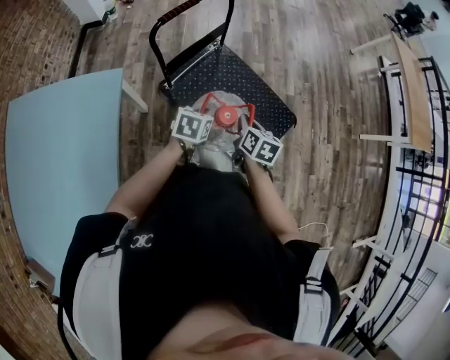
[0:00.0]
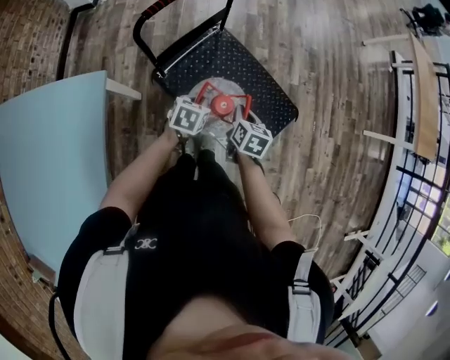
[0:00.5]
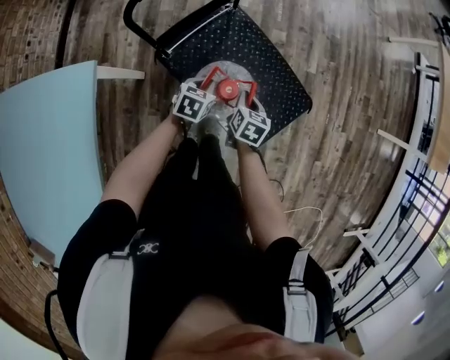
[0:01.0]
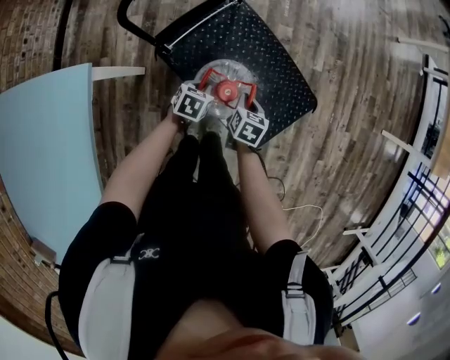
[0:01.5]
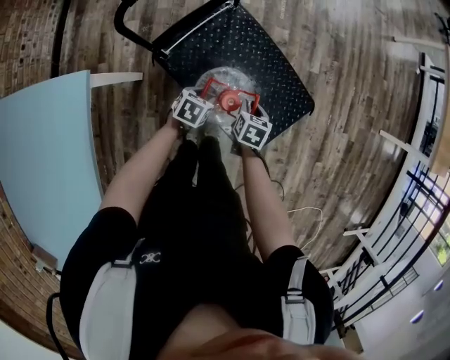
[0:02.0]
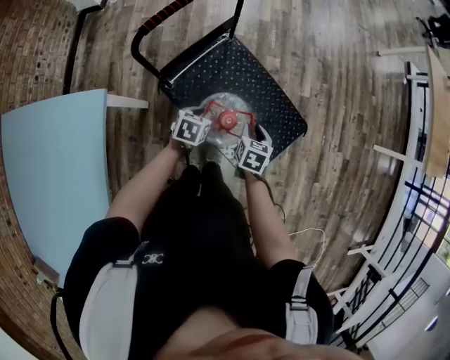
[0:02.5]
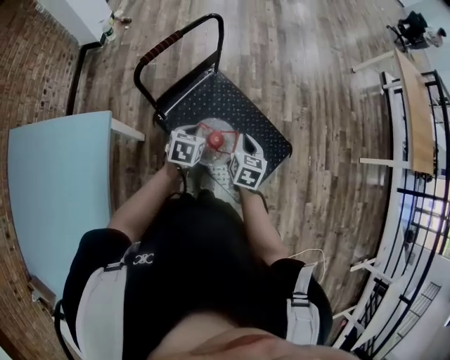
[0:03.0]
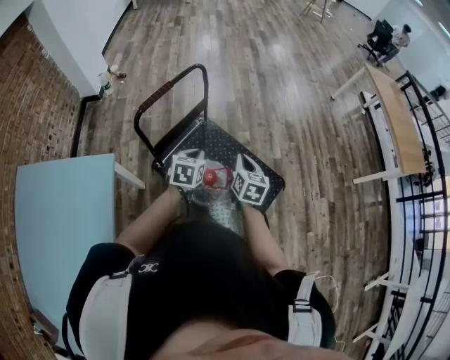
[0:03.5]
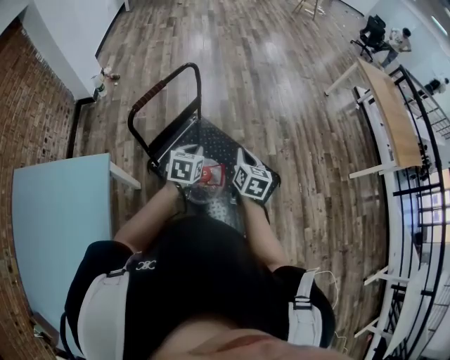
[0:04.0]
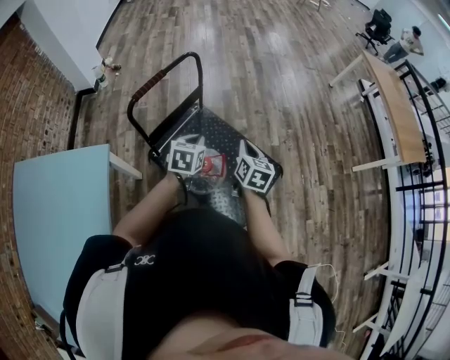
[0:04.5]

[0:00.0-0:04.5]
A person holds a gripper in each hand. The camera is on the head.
0:00.0 to 0:02.0: The two grippers go some 20 cm downward and forward. The left gripper opens up; the right gripper turns by approximately 20 degrees.
0:02.0 to 0:04.5: The grippers both shift upward by some 30 cm. The right gripper angles its fingers upward, by some 30 degrees; the left gripper swivels some 30 degrees, and closes.

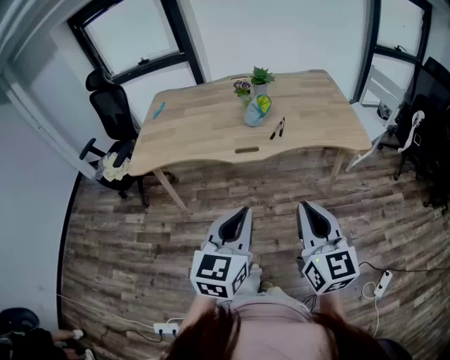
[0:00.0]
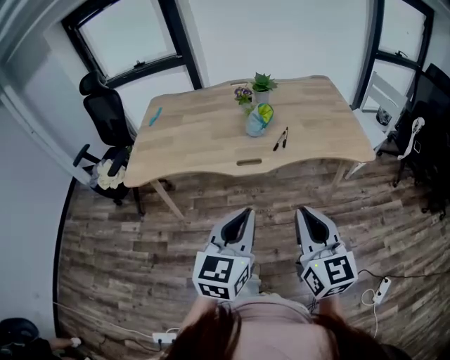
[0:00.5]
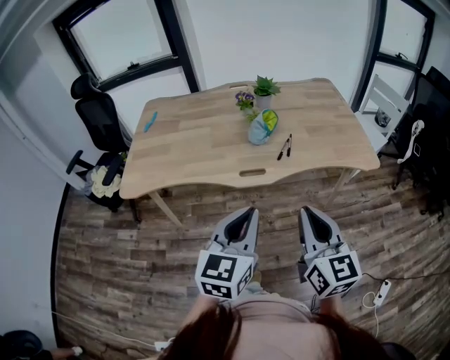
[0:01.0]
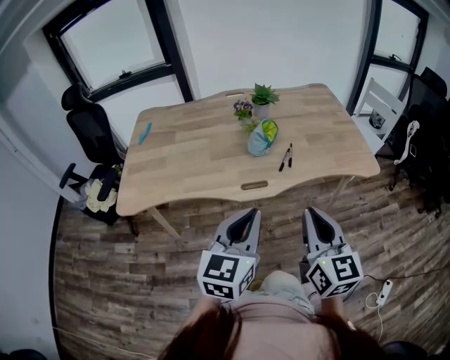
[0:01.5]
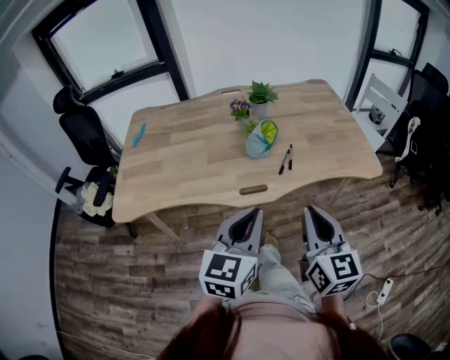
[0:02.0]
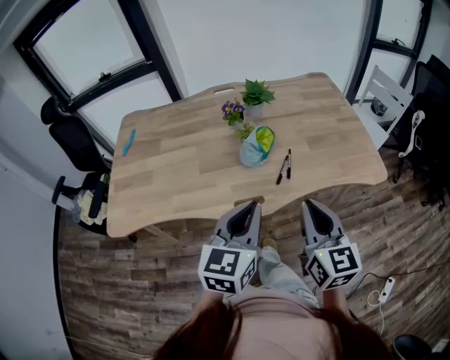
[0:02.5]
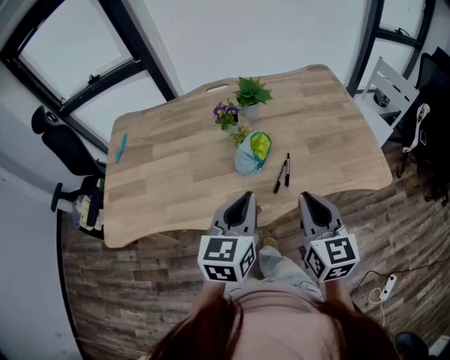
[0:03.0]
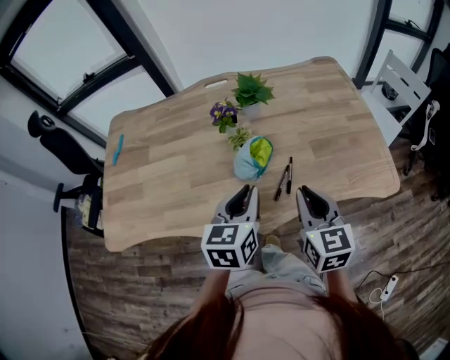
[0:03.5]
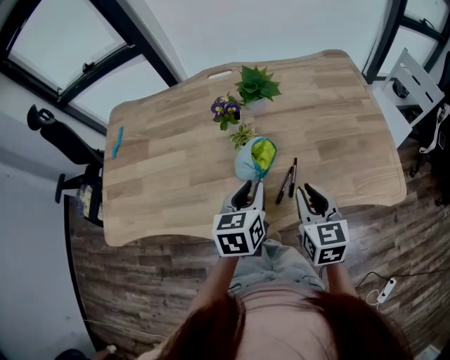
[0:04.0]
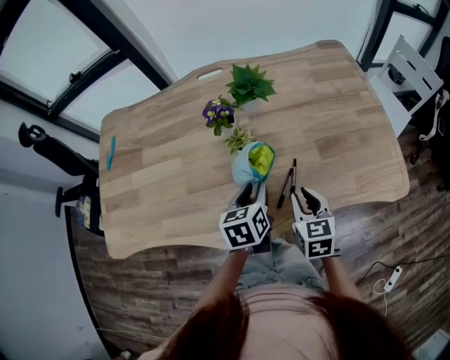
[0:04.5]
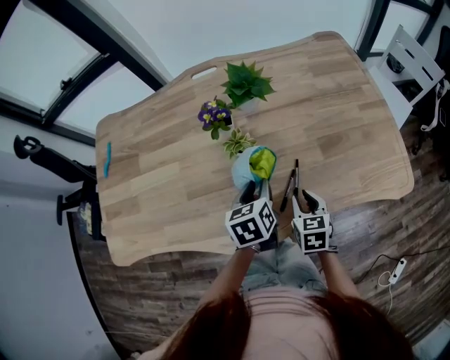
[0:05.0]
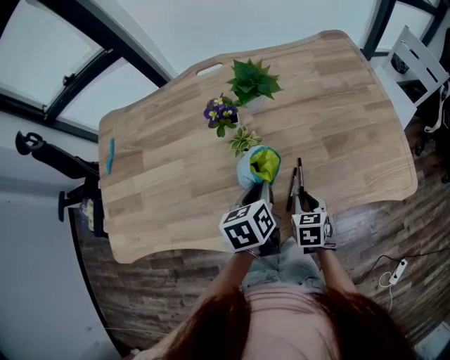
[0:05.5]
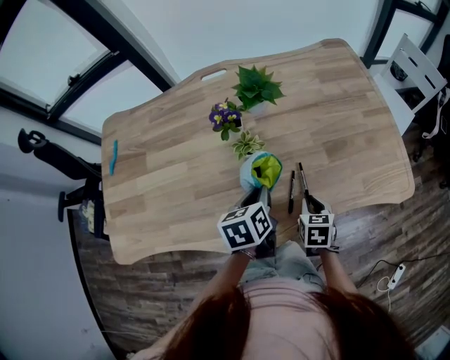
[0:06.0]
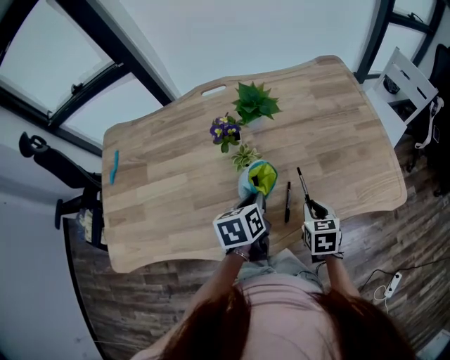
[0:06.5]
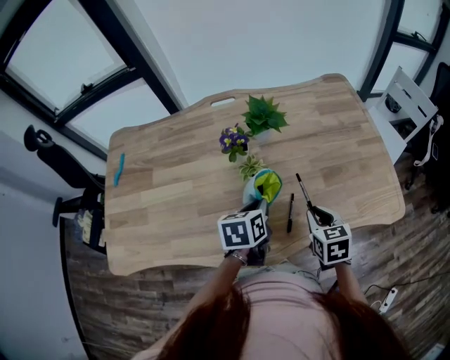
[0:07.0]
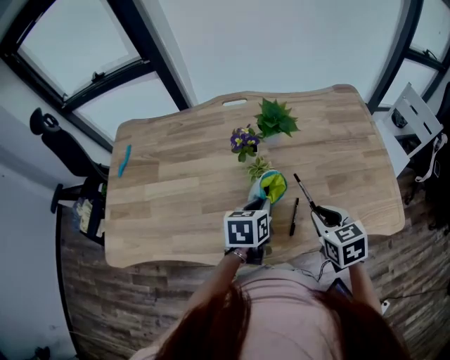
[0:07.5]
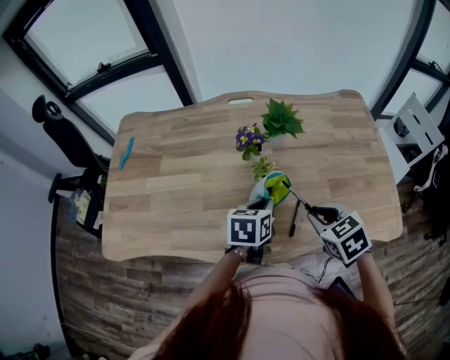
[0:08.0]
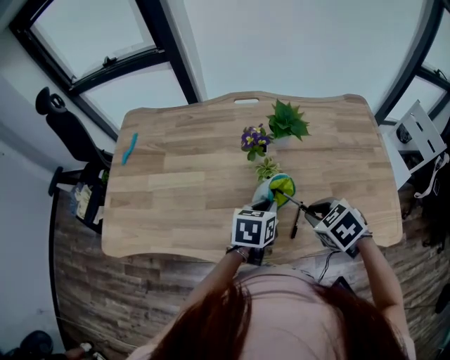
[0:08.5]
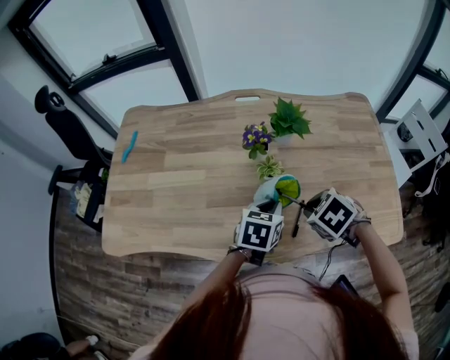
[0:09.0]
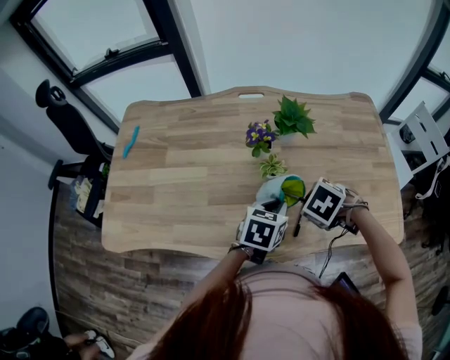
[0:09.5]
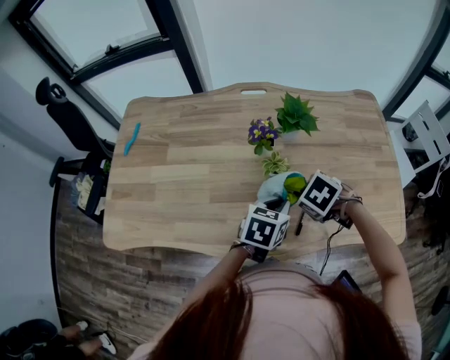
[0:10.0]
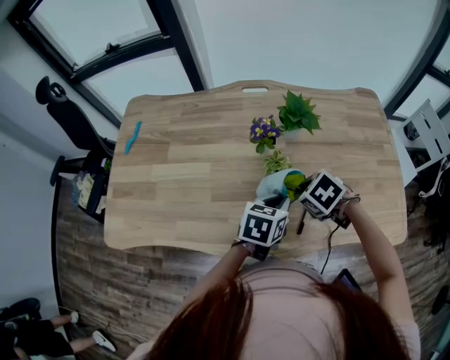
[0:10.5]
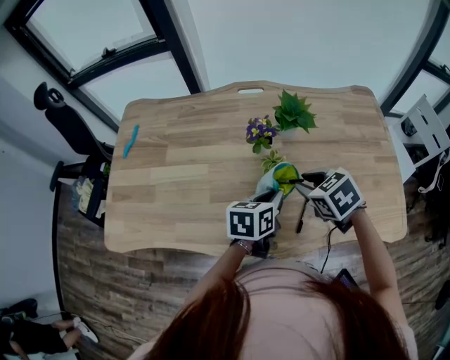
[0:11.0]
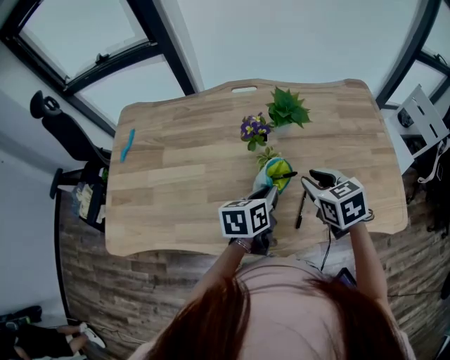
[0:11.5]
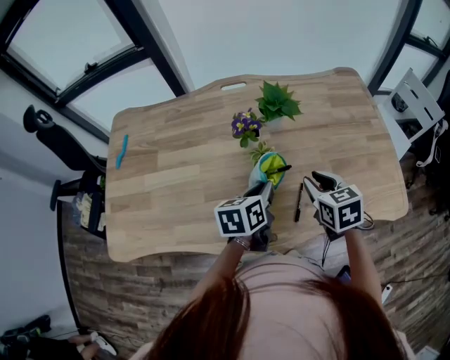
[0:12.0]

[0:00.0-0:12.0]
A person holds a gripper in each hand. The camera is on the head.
0:00.0 to 0:02.0: Both grippers move forward, roughly 20 cm.
0:02.0 to 0:04.0: The two grippers go some 35 cm forward and downward. The left gripper turns by approximately 30 degrees. The right gripper turns by roughly 20 degrees.
0:04.0 to 0:06.0: The left gripper goes approximately 5 cm downward. Meanwhile the right gripper heads downward, covering approximately 15 cm, and turns by some 30 degrees.
0:06.0 to 0:08.0: The right gripper goes about 15 cm upward, and rotates about 40 degrees.
0:08.0 to 0:10.0: The right gripper moves roughly 10 cm, and swivels some 30 degrees.
0:10.0 to 0:12.0: The left gripper swivels about 20 degrees; the right gripper moves roughly 5 cm, and tips its fingers upward by roughly 40 degrees.

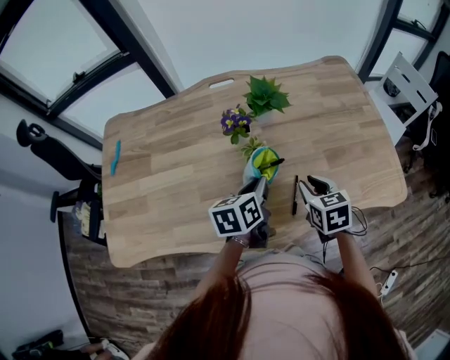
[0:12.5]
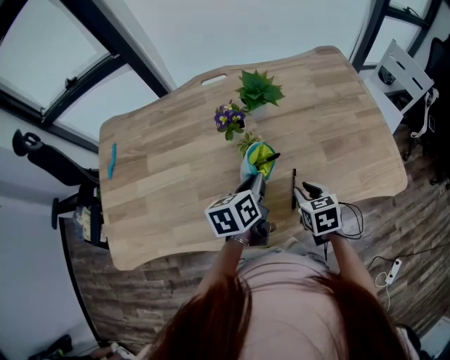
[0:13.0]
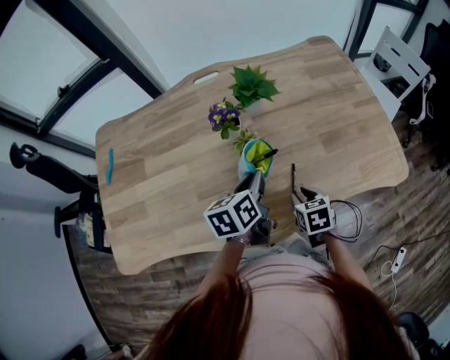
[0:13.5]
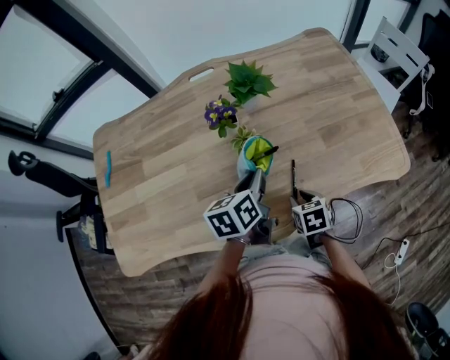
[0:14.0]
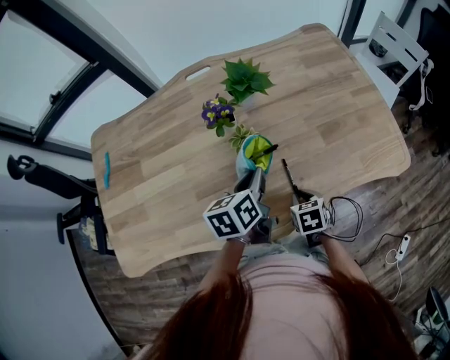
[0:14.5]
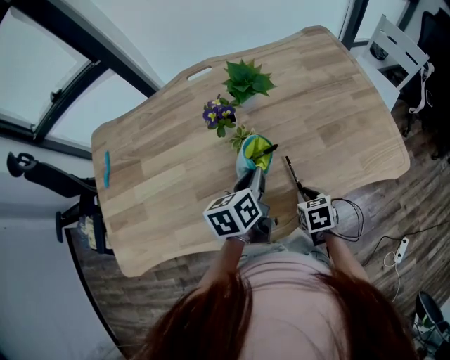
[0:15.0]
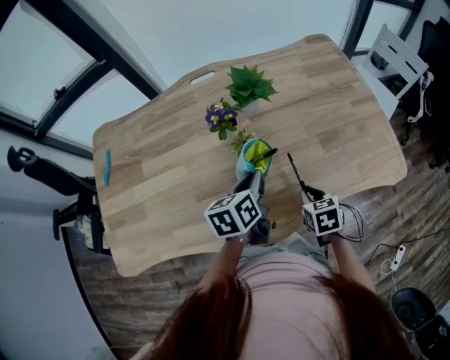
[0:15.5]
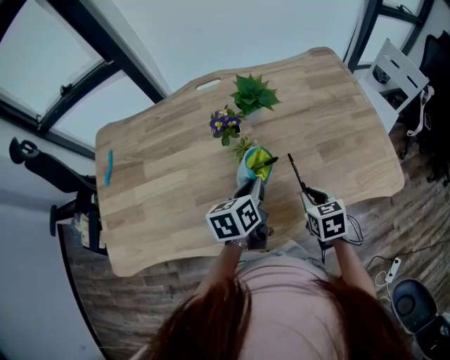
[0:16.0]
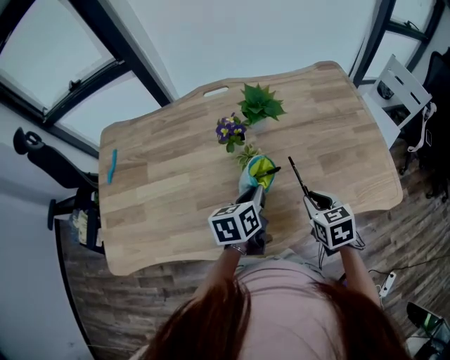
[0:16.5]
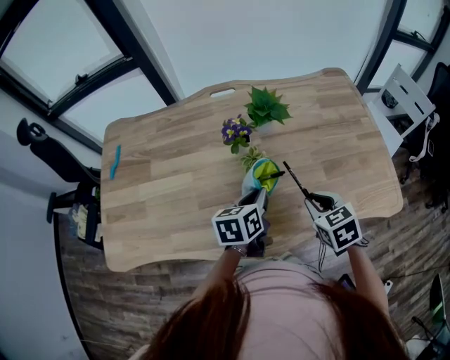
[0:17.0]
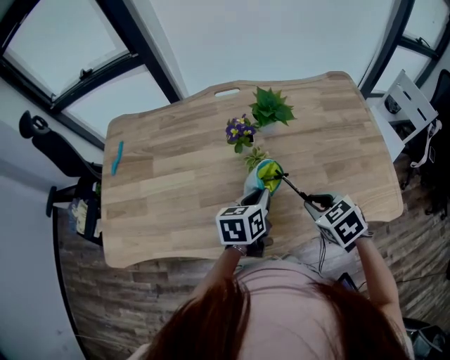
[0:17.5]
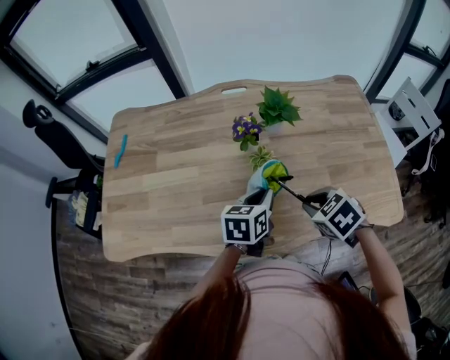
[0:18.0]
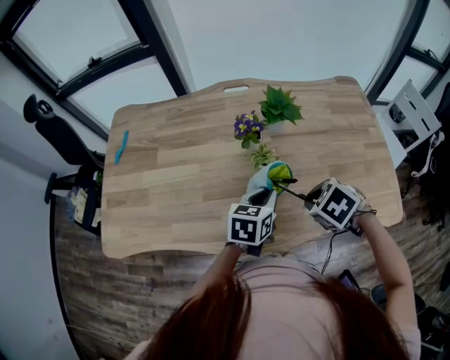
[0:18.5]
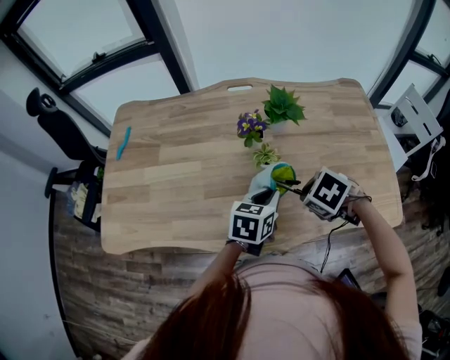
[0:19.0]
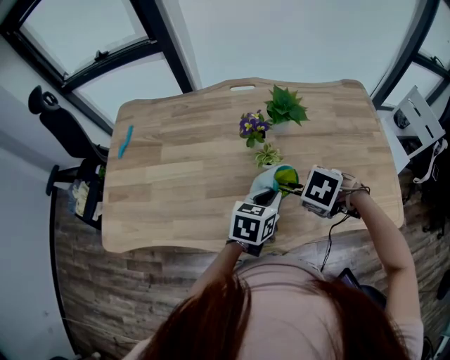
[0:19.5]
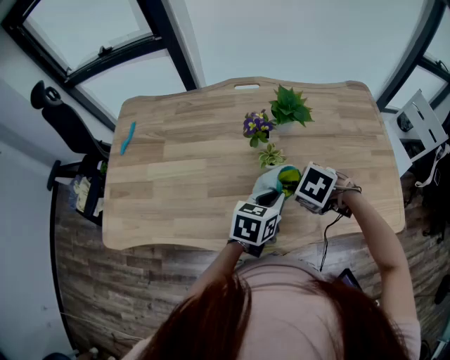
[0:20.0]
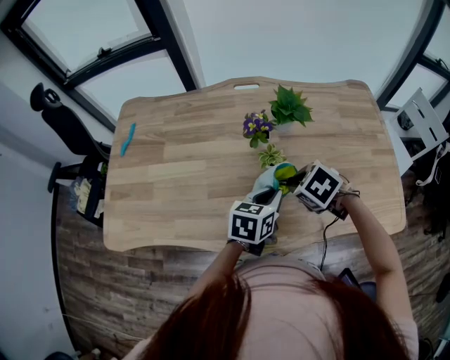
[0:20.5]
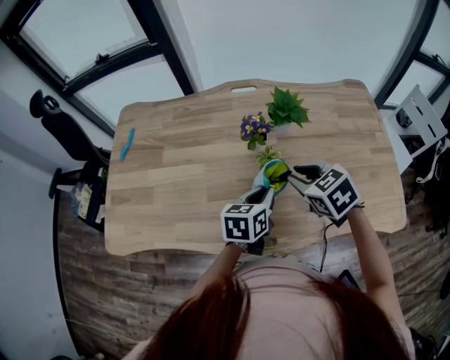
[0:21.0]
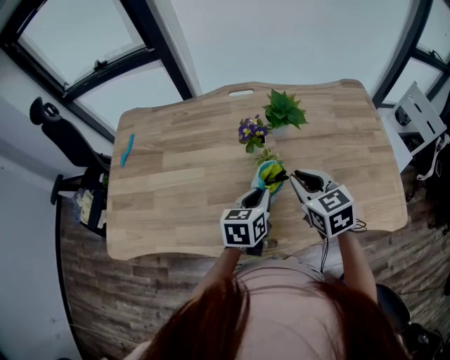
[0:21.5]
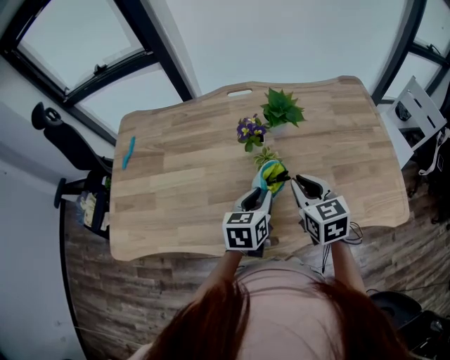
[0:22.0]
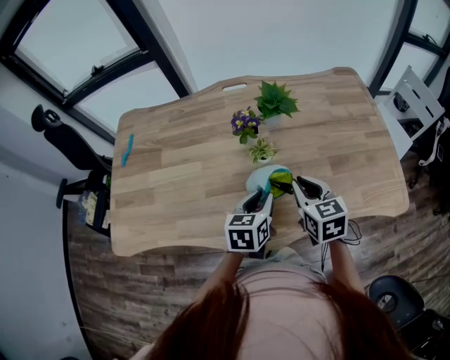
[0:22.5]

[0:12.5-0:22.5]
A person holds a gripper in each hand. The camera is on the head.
0:12.5 to 0:14.5: The right gripper shifts roughly 15 cm downward and backward, and changes its angle by approximately 20 degrees.
0:14.5 to 0:16.5: The right gripper goes some 15 cm upward and forward.
0:16.5 to 0:18.5: The right gripper ends up roughly 5 cm from where it was, and rotates roughly 50 degrees.
0:18.5 to 0:20.5: The right gripper changes place by about 10 cm.
0:20.5 to 0:22.5: The right gripper shifts by approximately 5 cm, and angles its fingers upward, by some 40 degrees.
